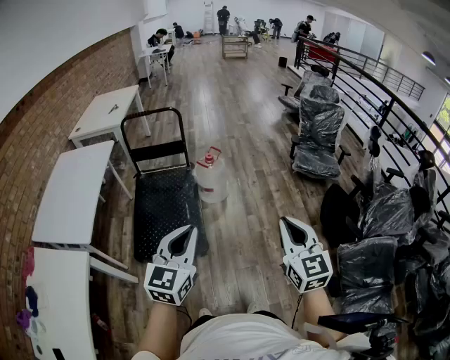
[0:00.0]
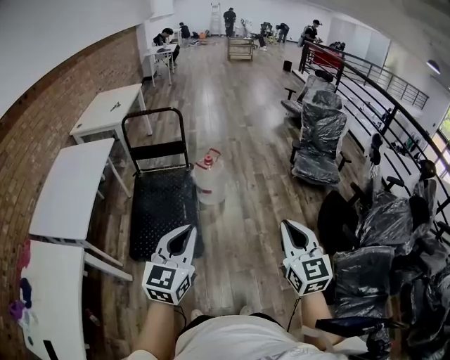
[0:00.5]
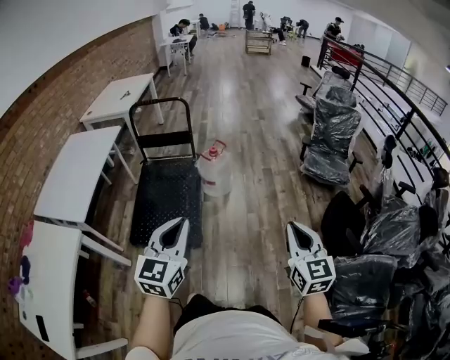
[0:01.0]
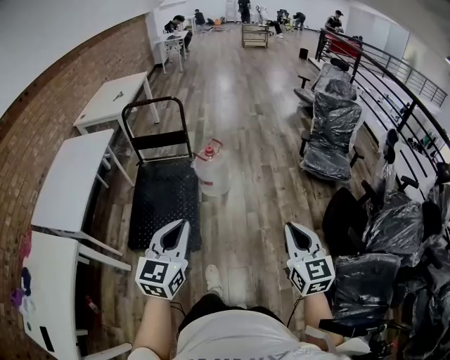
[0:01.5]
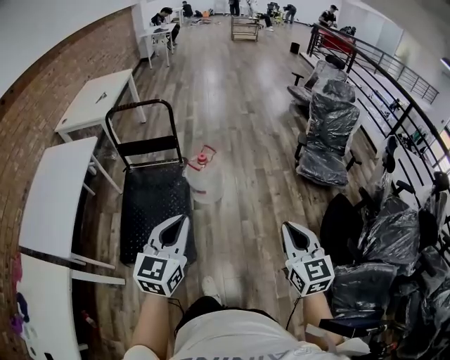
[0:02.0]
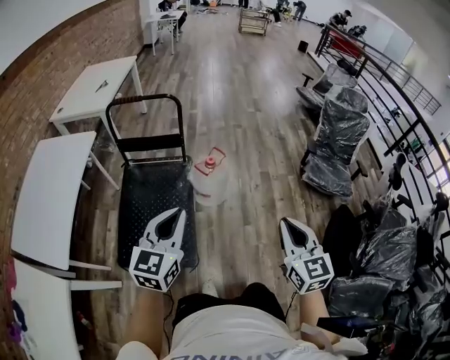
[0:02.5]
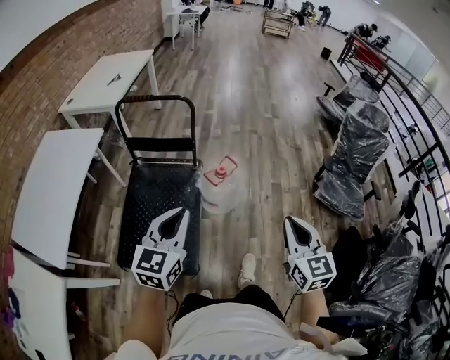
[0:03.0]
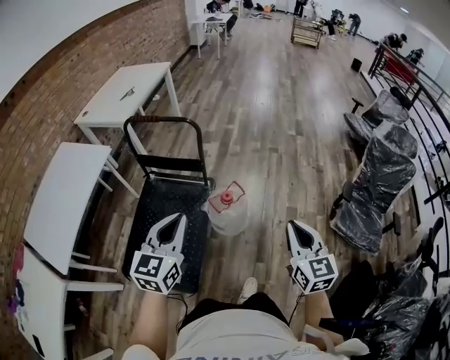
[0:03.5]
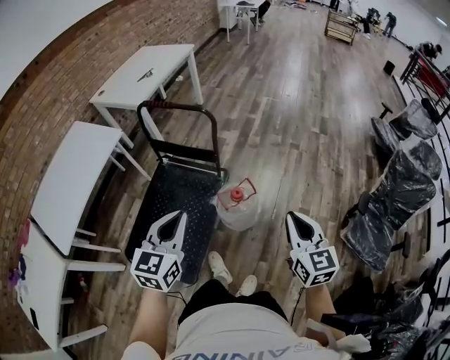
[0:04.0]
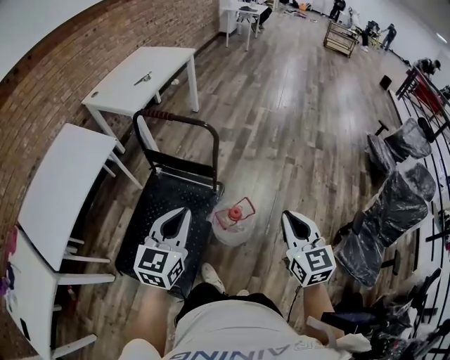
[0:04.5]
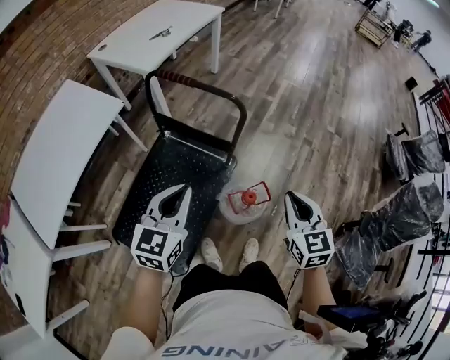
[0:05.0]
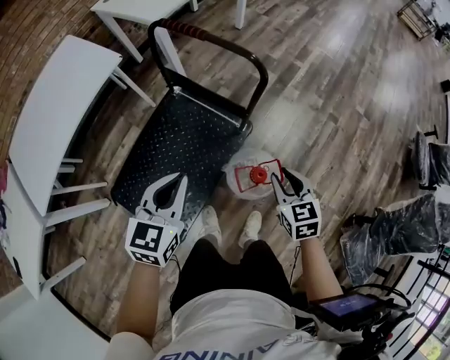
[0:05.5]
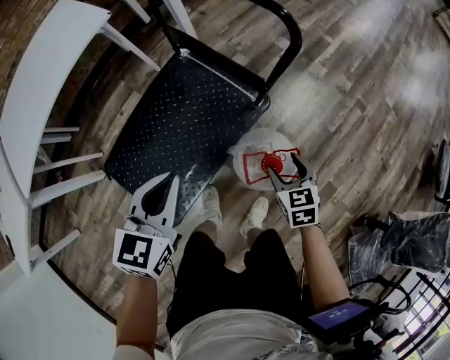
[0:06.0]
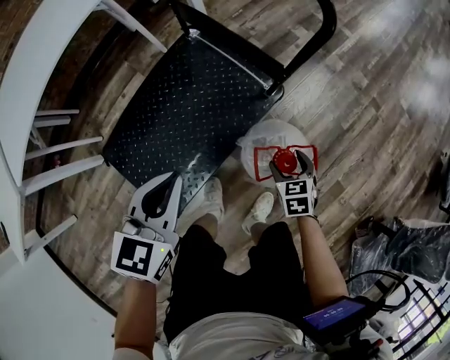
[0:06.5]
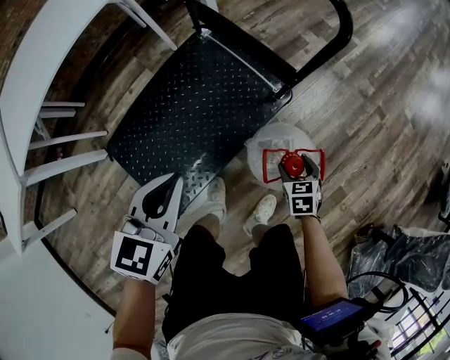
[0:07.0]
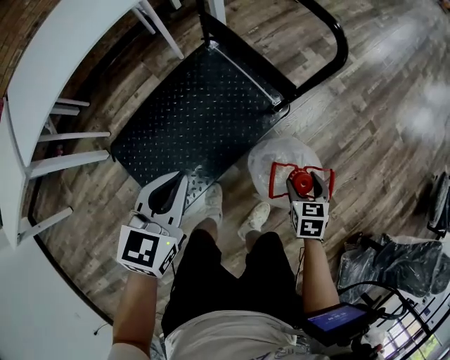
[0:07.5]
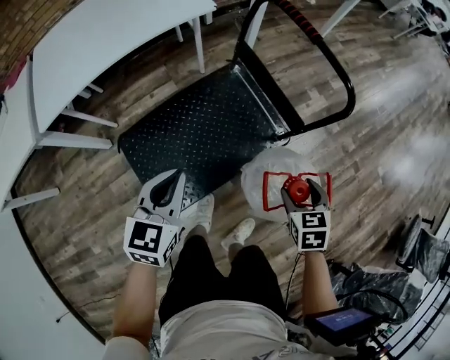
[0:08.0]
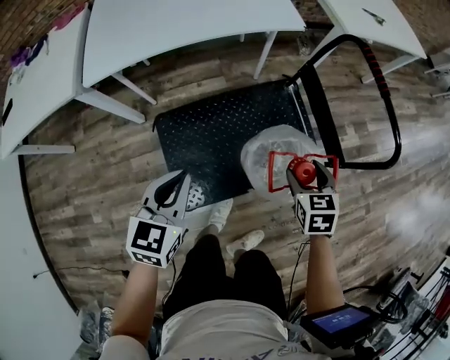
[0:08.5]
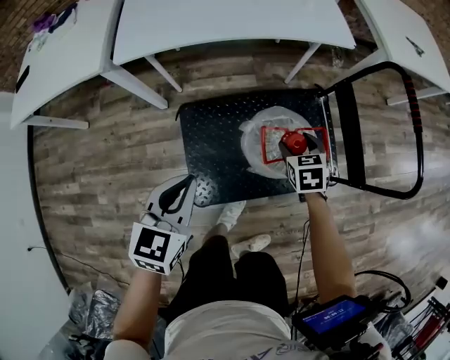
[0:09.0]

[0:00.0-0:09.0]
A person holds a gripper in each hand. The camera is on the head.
0:00.0 to 0:02.0: The left gripper is displaced forward by some 20 cm. The right gripper shifts approximately 20 cm forward and to the right.
0:02.0 to 0:04.5: The two grippers travel together, some 50 cm. The right gripper turns by roughly 30 degrees. The left gripper turns by about 20 degrees.
0:04.5 to 0:07.0: The right gripper shifts approximately 50 cm downward, tips its fingers downward by roughly 40 degrees, and opens up. The left gripper goes roughly 25 cm downward, and rotates about 30 degrees.
0:07.0 to 0:09.0: The right gripper changes place by approximately 50 cm, and rotates some 40 degrees. Meanwhile the left gripper changes place by roughly 30 cm, and rotates approximately 40 degrees.

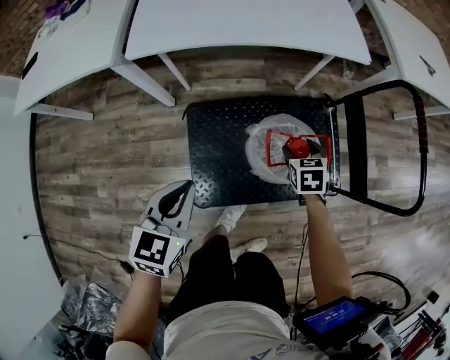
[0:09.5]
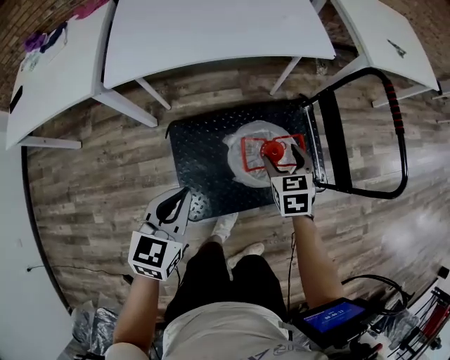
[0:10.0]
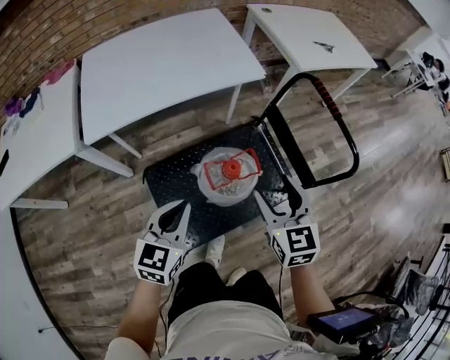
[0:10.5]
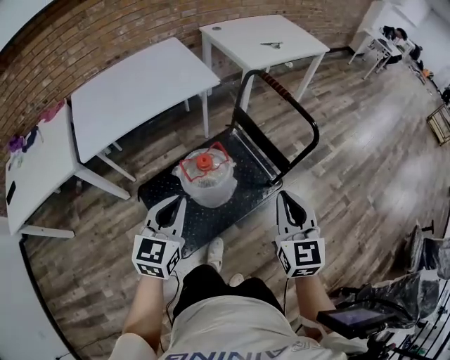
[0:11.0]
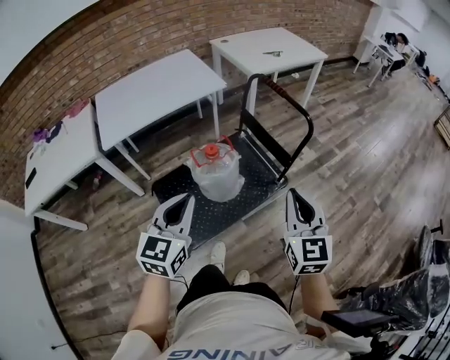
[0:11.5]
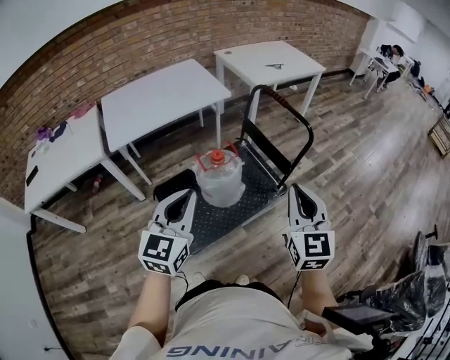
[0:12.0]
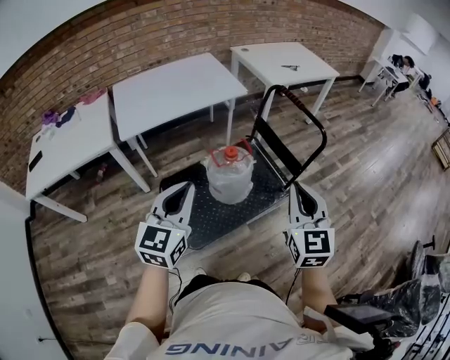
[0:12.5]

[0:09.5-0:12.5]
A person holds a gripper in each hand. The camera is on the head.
0:09.5 to 0:11.0: The right gripper is displaced upward, backward and to the right by about 50 cm, tilts its fingers roughly 40 degrees upward, and closes. Meanwhile the left gripper shifts roughly 20 cm to the right and upward, and swivels roughly 30 degrees.
0:11.0 to 0:12.5: The two grippers go some 15 cm backward and upward.

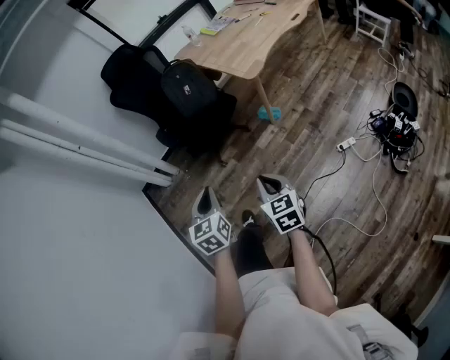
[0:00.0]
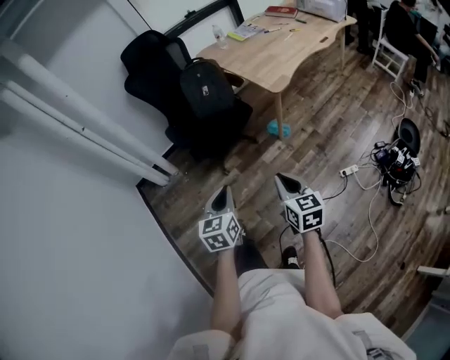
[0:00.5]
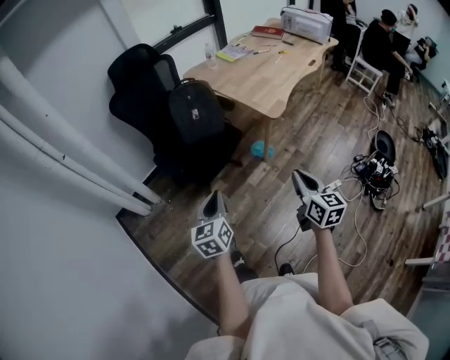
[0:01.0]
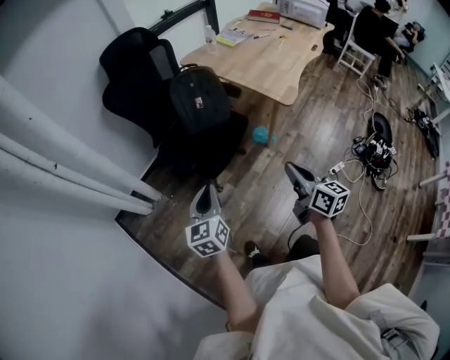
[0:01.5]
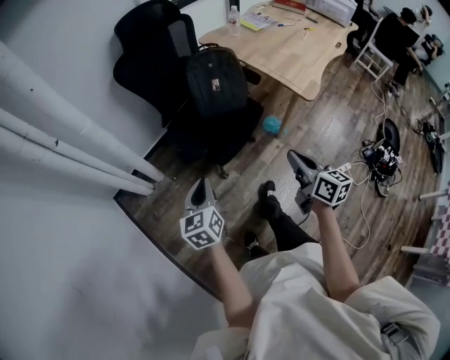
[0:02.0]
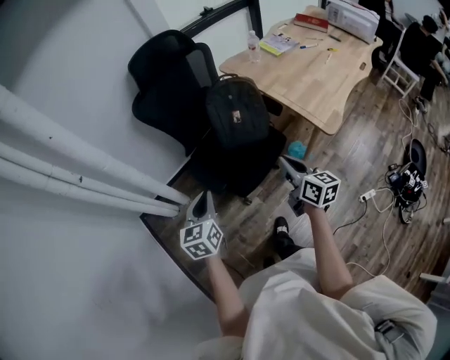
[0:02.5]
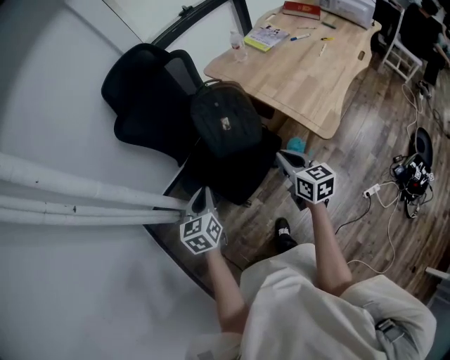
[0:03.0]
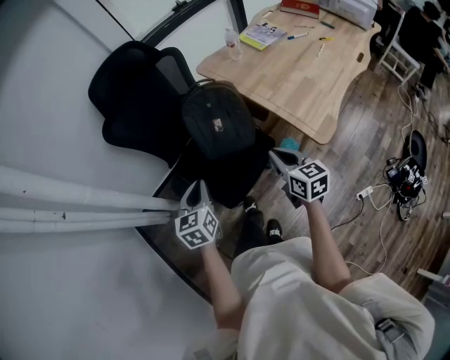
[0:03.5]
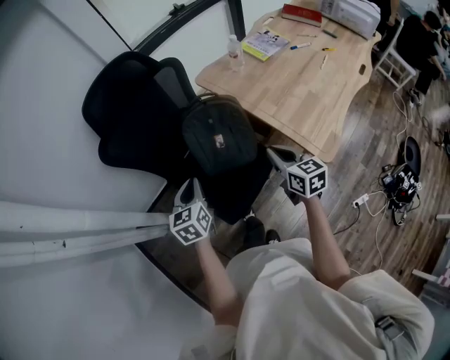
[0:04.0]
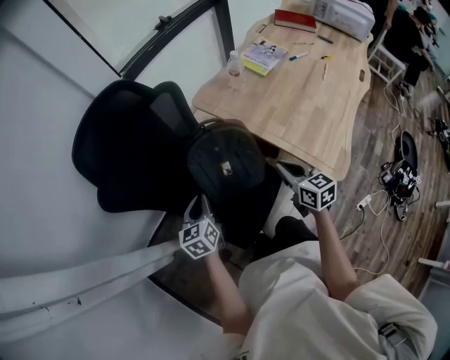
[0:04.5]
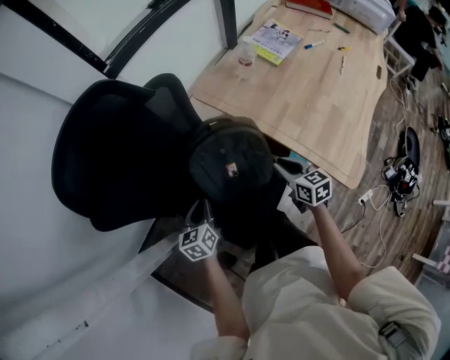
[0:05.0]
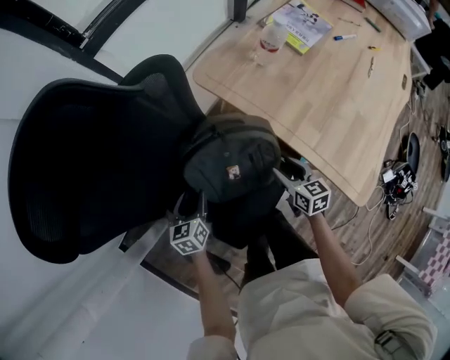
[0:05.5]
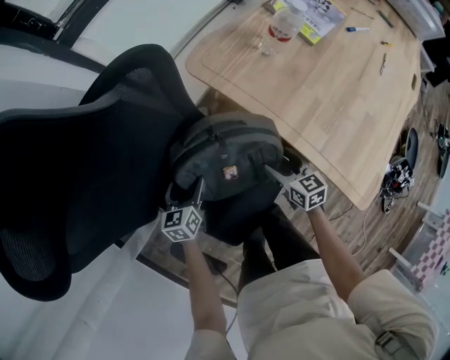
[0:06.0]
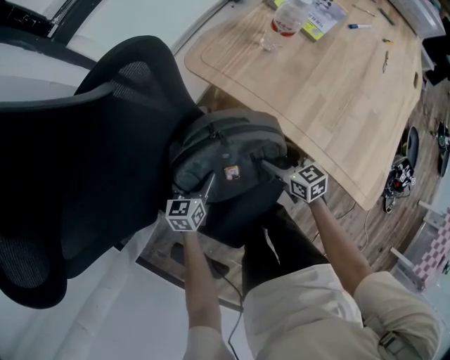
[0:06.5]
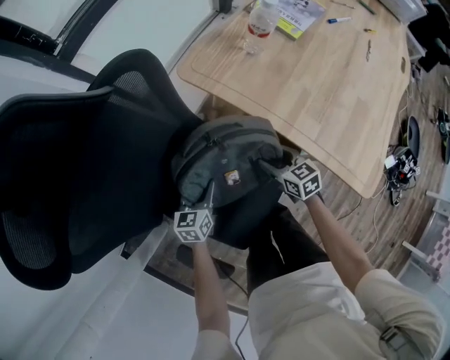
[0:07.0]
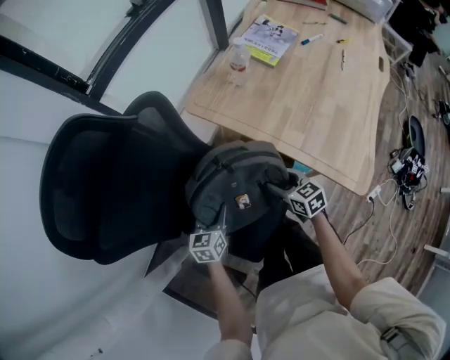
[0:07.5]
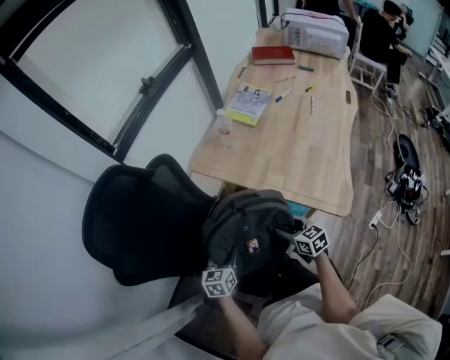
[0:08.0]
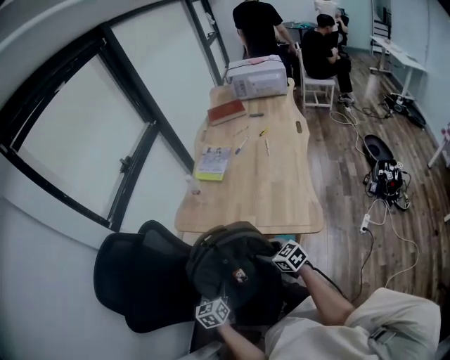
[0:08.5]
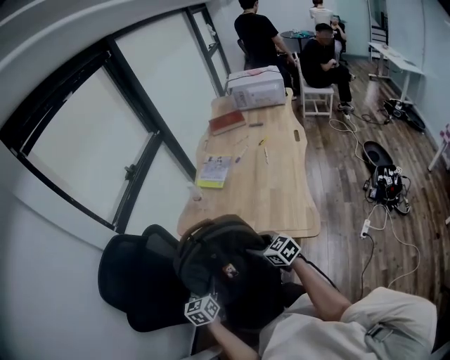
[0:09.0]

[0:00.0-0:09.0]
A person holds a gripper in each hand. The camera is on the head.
0:00.0 to 0:02.0: Both grippers are carried forward and to the left, some 50 cm. The right gripper changes its angle by about 30 degrees.
0:02.0 to 0:04.5: The pair of grippers is taken forward, approximately 50 cm.
0:04.5 to 0:07.0: Both grippers move downward and forward, approximately 30 cm. The left gripper swivels about 20 degrees, and opens up. Meanwhile the right gripper opens its fingers.
0:07.0 to 0:09.0: The grippers both shift upward by approximately 35 cm. The right gripper rotates roughly 20 degrees.

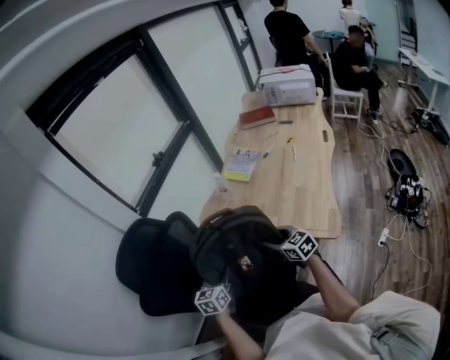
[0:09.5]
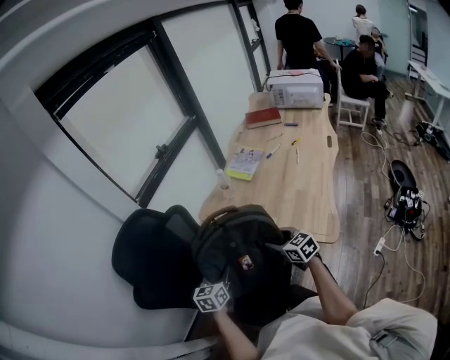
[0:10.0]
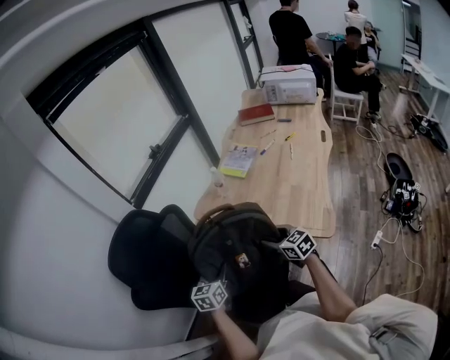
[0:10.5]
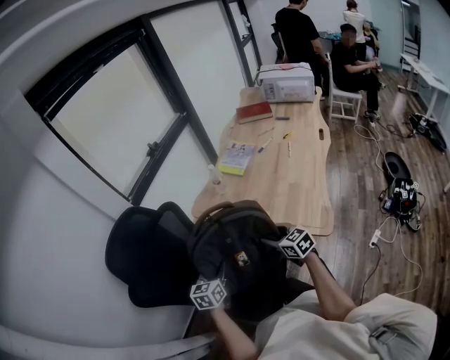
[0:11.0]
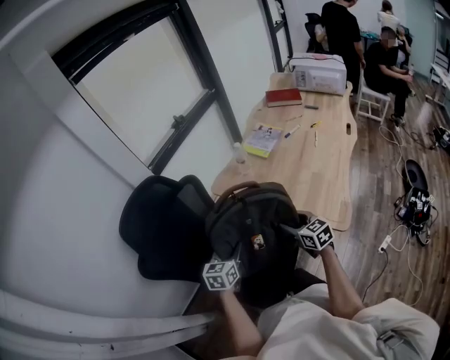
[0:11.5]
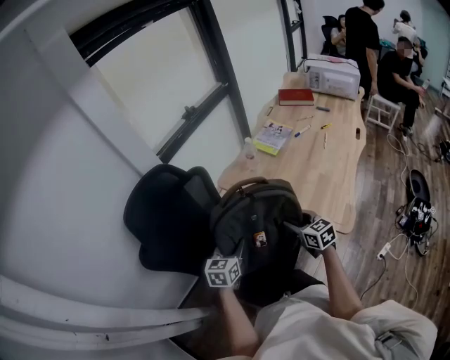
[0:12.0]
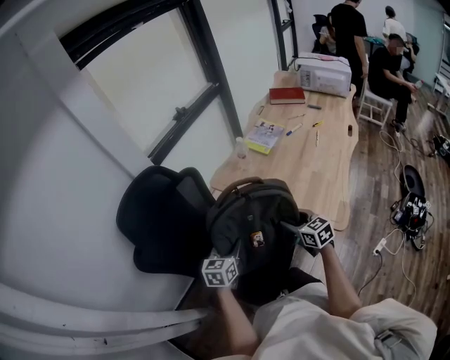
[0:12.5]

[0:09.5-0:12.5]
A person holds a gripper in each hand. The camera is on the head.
0:09.5 to 0:12.5: The grippers make only small movements.

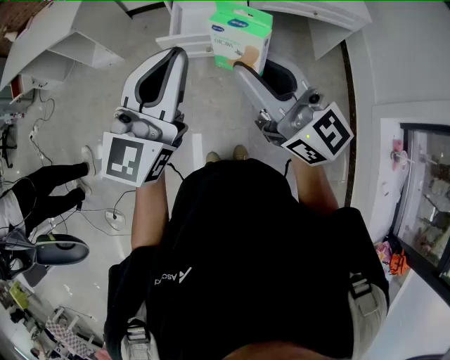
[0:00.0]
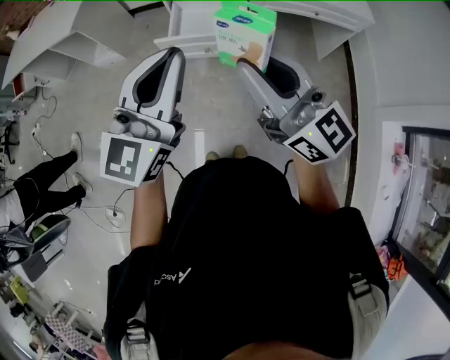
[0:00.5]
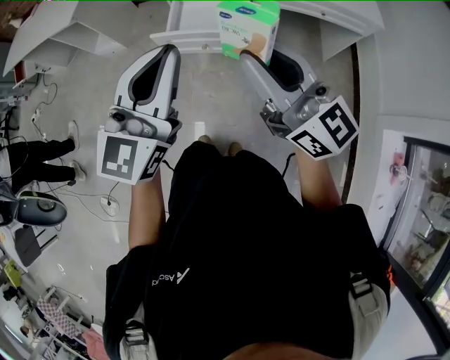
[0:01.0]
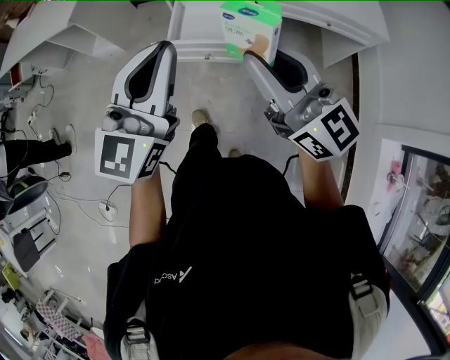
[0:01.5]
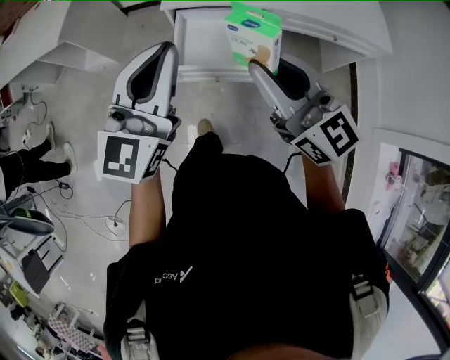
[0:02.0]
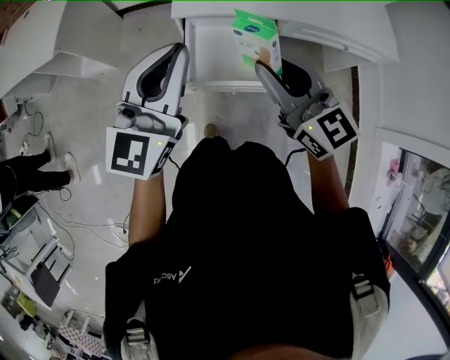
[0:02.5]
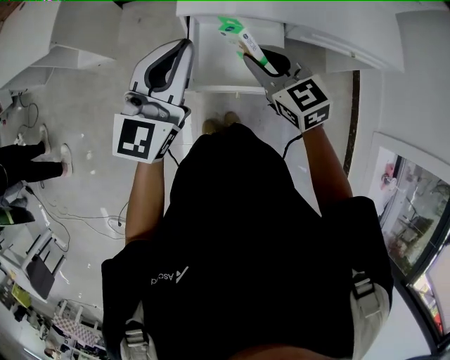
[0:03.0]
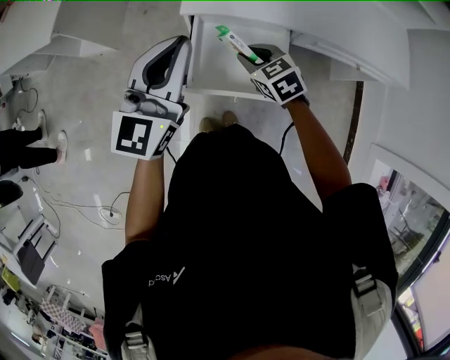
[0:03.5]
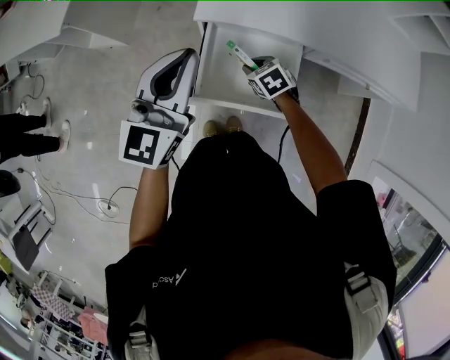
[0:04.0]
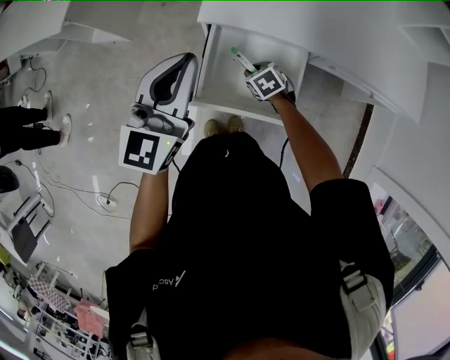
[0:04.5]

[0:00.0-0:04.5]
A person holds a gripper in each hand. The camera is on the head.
0:00.0 to 0:02.0: The two grippers go approximately 25 cm forward.
0:02.0 to 0:04.5: The right gripper shifts about 50 cm downward and forward, and points its fingers some 70 degrees further downward, while the left gripper shifts some 25 cm forward and downward.
